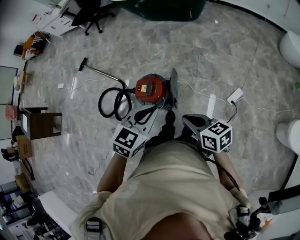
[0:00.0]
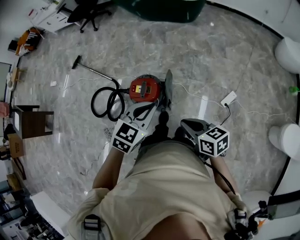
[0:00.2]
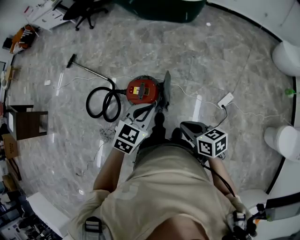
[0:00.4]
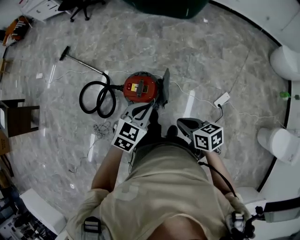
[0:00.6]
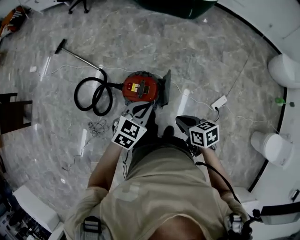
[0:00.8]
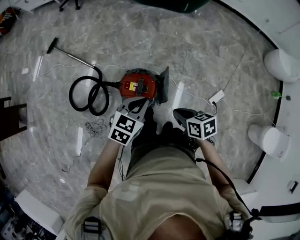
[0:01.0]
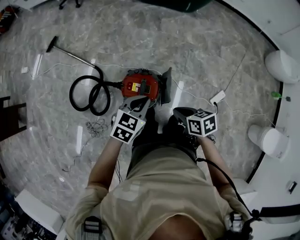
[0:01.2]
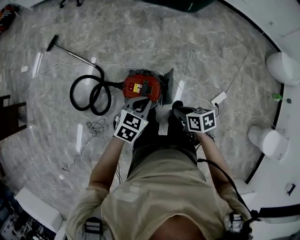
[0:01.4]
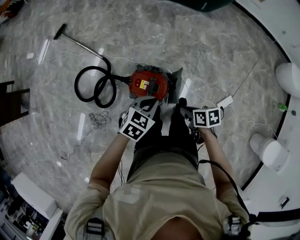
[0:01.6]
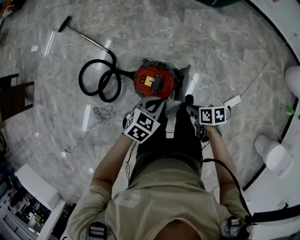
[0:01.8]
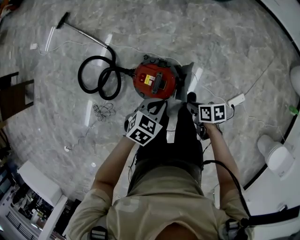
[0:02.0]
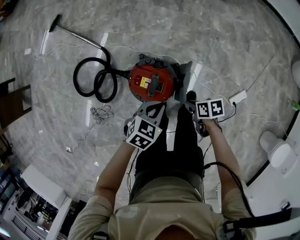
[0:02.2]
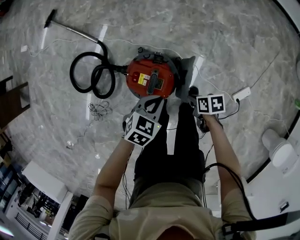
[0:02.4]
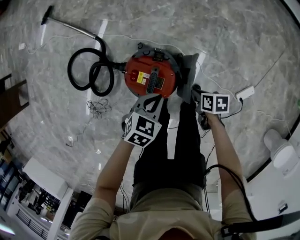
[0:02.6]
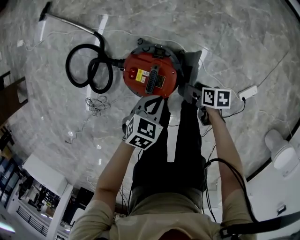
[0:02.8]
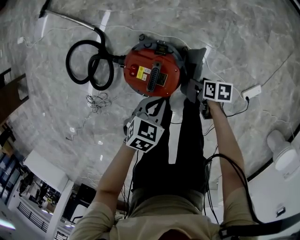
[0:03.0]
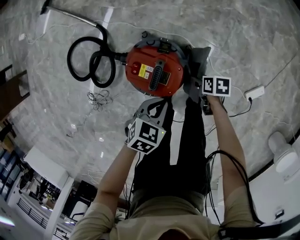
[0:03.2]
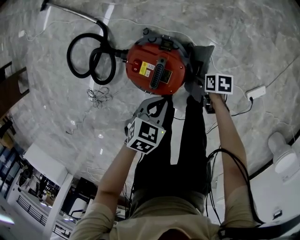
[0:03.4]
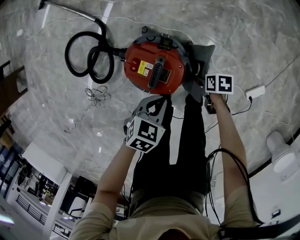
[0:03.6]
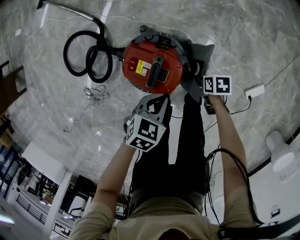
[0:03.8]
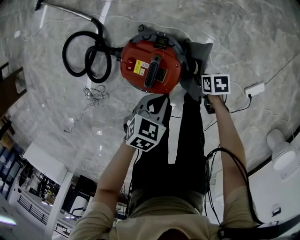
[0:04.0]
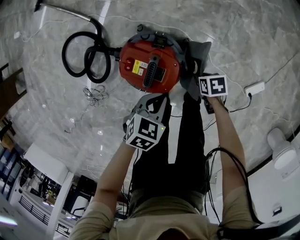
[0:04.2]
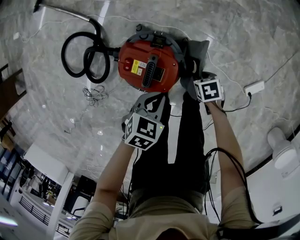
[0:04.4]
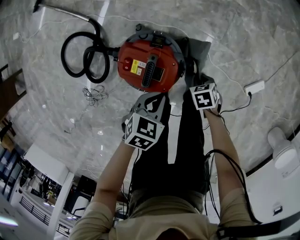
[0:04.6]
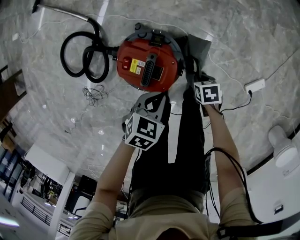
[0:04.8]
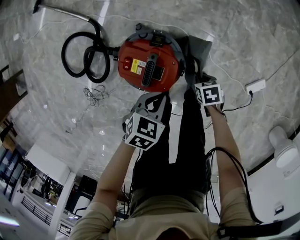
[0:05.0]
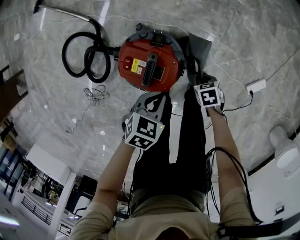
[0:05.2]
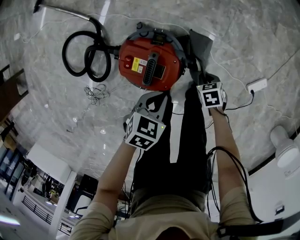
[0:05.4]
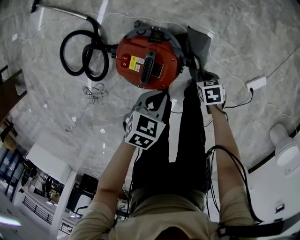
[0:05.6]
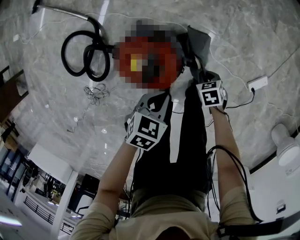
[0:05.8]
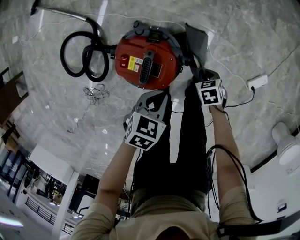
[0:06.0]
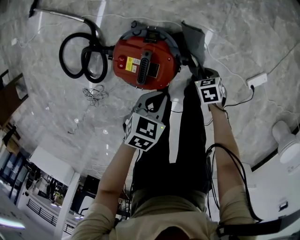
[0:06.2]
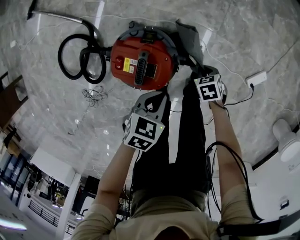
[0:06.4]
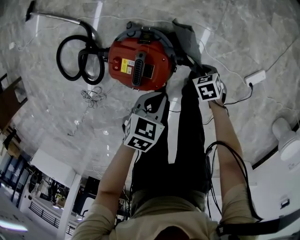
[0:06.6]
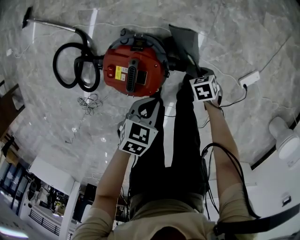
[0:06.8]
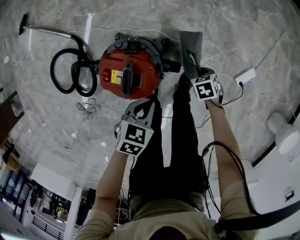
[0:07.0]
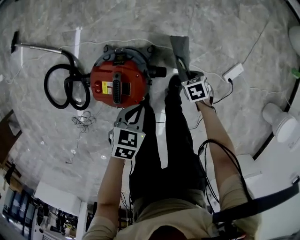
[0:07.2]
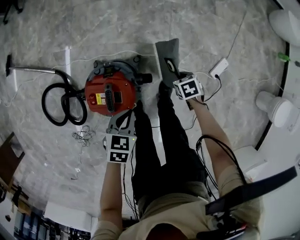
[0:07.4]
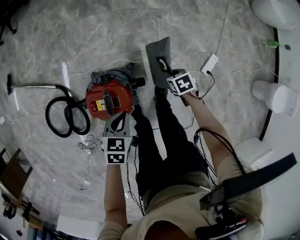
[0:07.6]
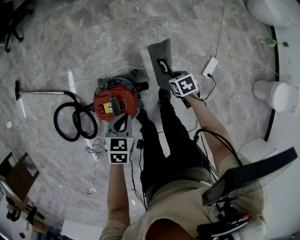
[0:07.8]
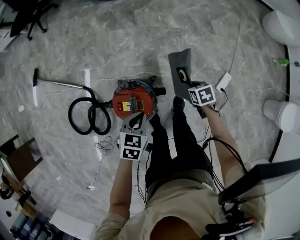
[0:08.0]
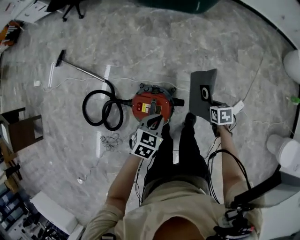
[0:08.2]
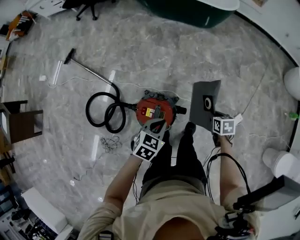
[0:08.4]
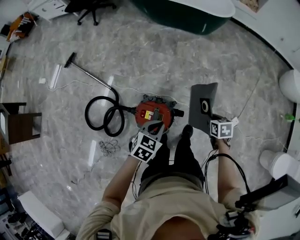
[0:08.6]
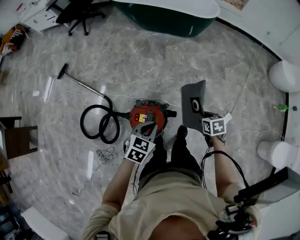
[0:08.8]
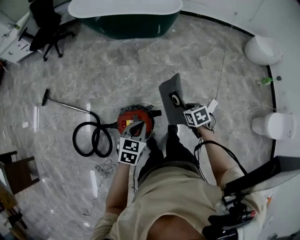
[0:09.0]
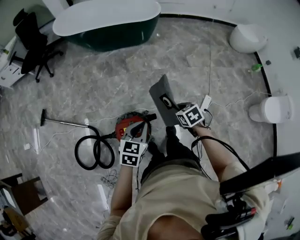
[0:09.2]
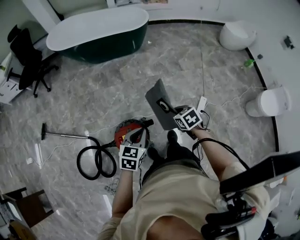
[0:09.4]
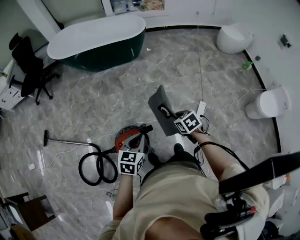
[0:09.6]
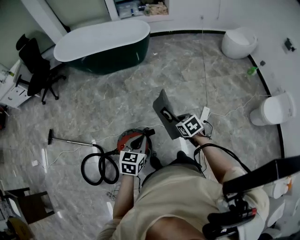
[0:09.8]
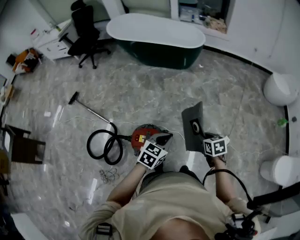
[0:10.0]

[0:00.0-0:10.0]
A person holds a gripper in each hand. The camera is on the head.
0:00.0 to 0:01.4: The two grippers go about 25 cm forward, downward and to the left. The right gripper swivels approximately 30 degrees.
0:01.4 to 0:02.8: Both grippers travel together downward, roughly 30 cm. The right gripper opens up.
0:02.8 to 0:04.2: The right gripper moves downward, approximately 10 cm, turns by approximately 20 degrees, and closes.
0:04.2 to 0:05.8: The right gripper closes its fingers.
0:05.8 to 0:07.2: The right gripper changes place by about 10 cm.
0:07.2 to 0:08.6: The two grippers go approximately 30 cm upward. The right gripper changes its angle by some 20 degrees.
0:08.6 to 0:10.0: The right gripper moves to the right, backward and upward, about 30 cm. Meanwhile the left gripper goes roughly 30 cm to the right, and turns by roughly 20 degrees.

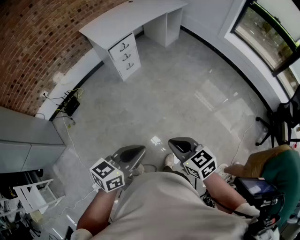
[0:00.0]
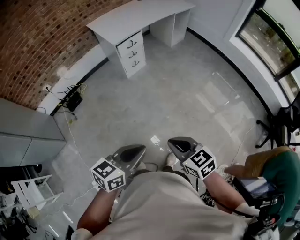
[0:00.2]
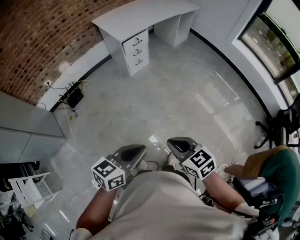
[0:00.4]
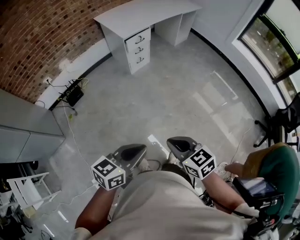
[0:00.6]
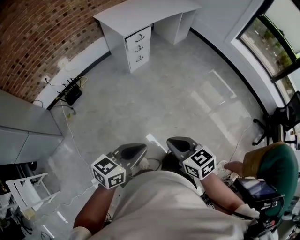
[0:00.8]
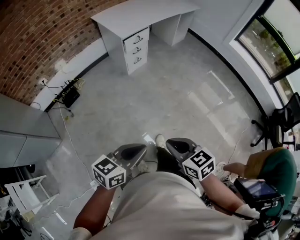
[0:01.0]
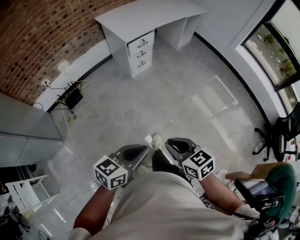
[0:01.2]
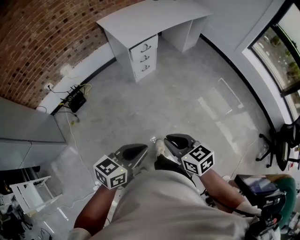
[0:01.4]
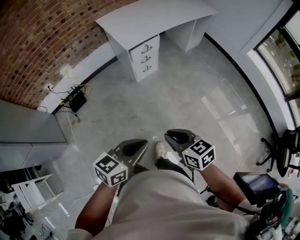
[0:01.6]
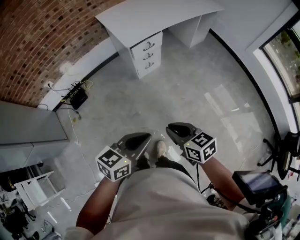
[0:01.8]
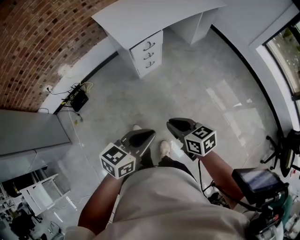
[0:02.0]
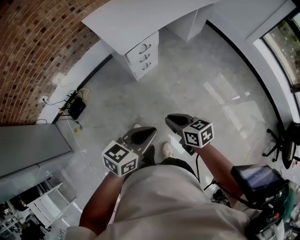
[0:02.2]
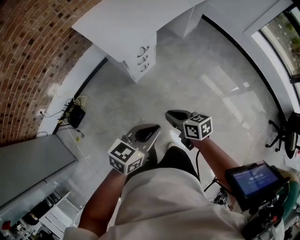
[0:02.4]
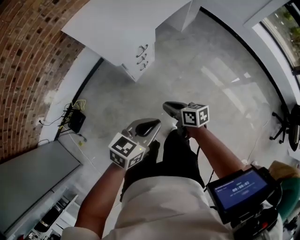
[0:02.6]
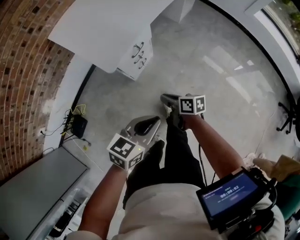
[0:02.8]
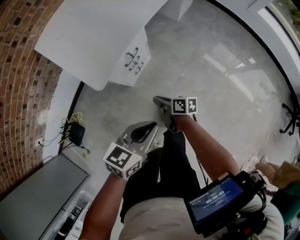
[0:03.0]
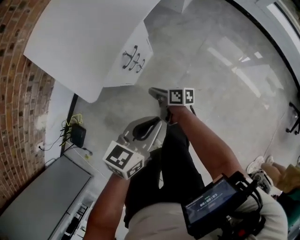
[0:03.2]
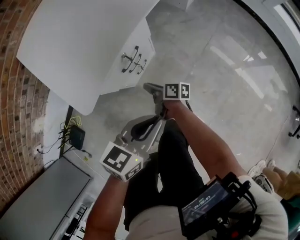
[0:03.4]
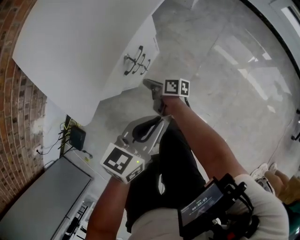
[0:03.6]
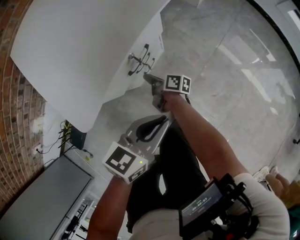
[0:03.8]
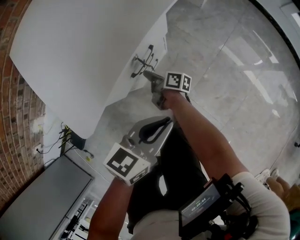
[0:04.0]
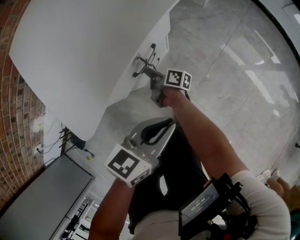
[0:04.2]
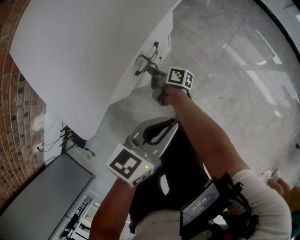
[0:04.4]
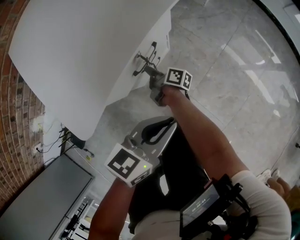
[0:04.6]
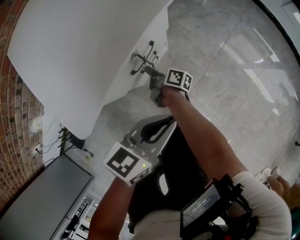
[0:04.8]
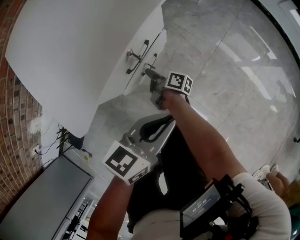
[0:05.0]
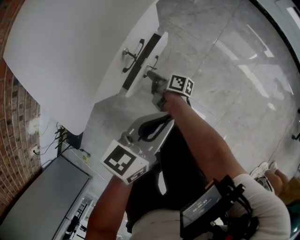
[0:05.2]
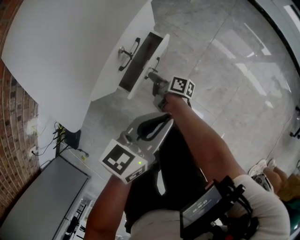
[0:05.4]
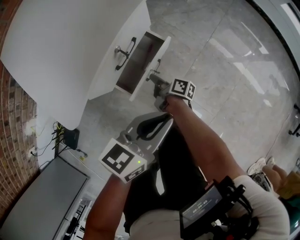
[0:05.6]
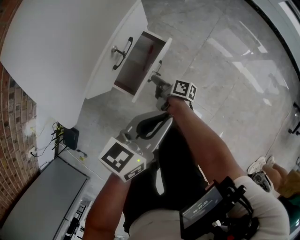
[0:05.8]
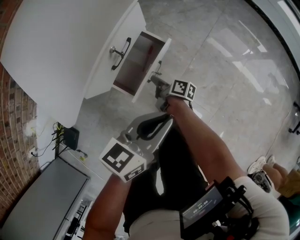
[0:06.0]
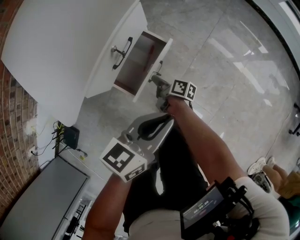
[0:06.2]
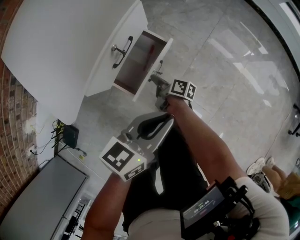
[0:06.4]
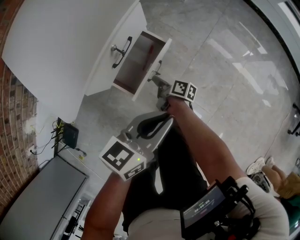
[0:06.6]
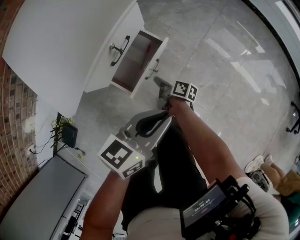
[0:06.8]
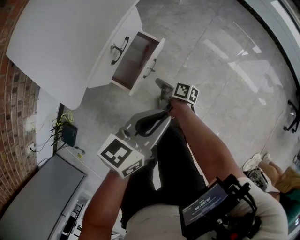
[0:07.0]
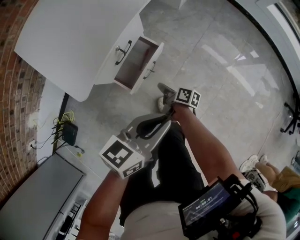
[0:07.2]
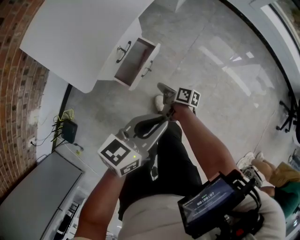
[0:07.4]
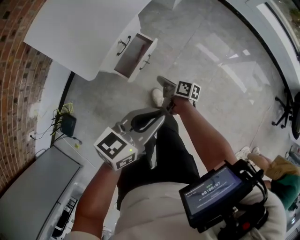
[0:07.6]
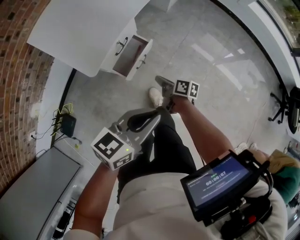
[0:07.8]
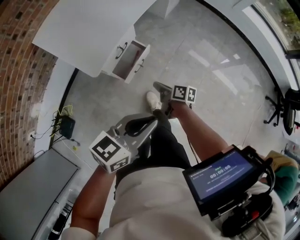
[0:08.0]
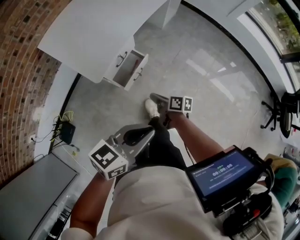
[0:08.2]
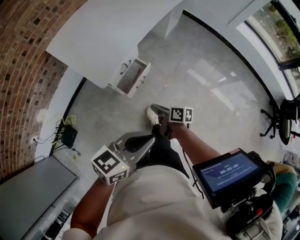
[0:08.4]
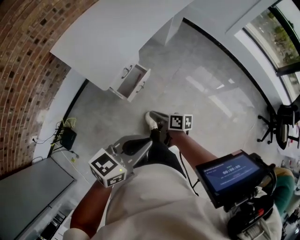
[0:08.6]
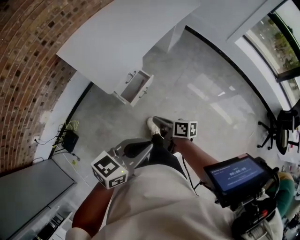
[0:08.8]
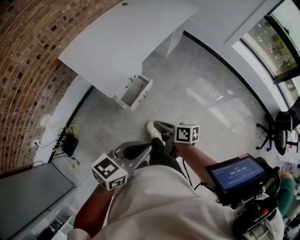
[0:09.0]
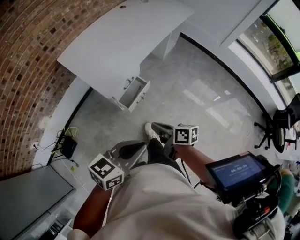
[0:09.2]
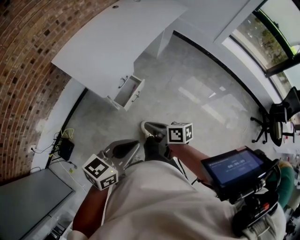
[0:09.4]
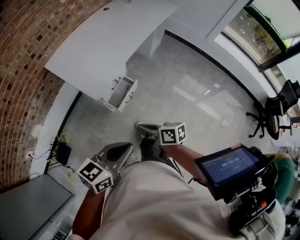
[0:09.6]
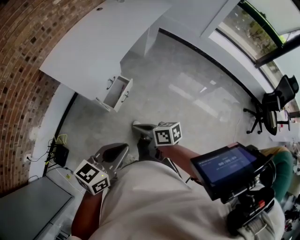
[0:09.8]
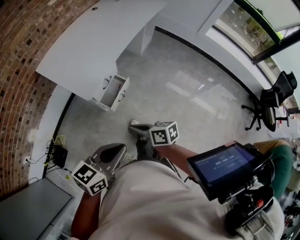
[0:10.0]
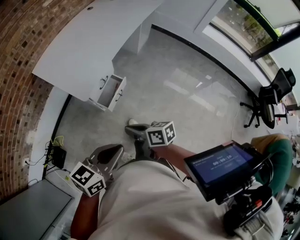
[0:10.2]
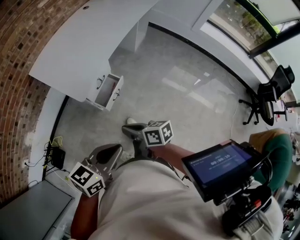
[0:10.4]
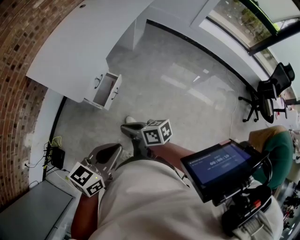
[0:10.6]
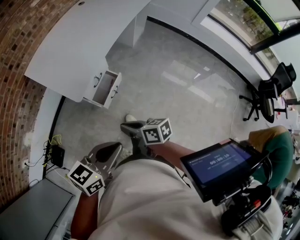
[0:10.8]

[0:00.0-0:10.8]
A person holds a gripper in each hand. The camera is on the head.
0:00.0 to 0:01.6: The two grippers go approximately 25 cm forward and to the left.
0:01.6 to 0:03.0: The two grippers travel together, forward, some 50 cm. The right gripper moves downward, about 40 cm, and twists approximately 50 degrees clockwise, seen from behind, while the left gripper is displaced downward by approximately 25 cm.
0:03.0 to 0:04.6: The left gripper goes roughly 25 cm downward and forward, while the right gripper heads downward, forward and to the left, covering approximately 35 cm, and swivels approximately 20 degrees.
0:04.6 to 0:06.2: The right gripper shifts approximately 15 cm to the right and backward, while the left gripper travels to the right by some 5 cm.
0:06.2 to 0:07.8: The left gripper shifts some 25 cm upward and backward; the right gripper is displaced upward by roughly 25 cm.
0:07.8 to 0:09.2: The right gripper goes roughly 30 cm upward and backward, and turns by some 20 degrees. Meanwhile the left gripper shifts about 20 cm upward and backward.
0:09.2 to 0:10.8: The grippers move only a little.

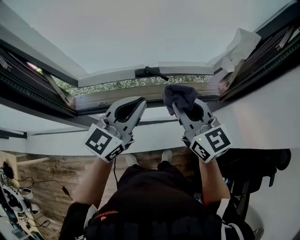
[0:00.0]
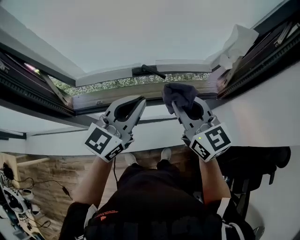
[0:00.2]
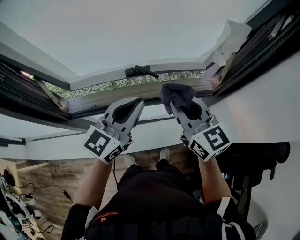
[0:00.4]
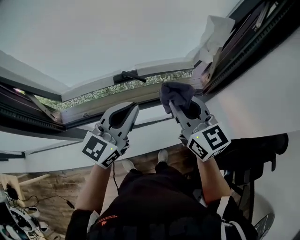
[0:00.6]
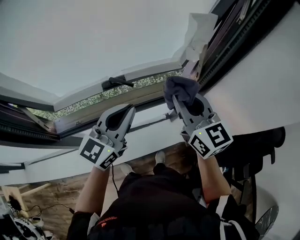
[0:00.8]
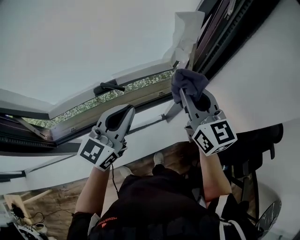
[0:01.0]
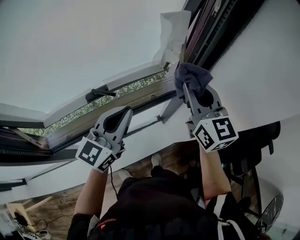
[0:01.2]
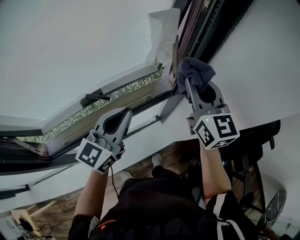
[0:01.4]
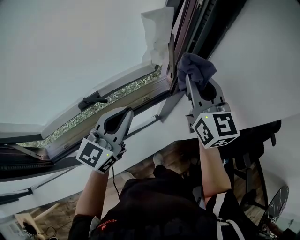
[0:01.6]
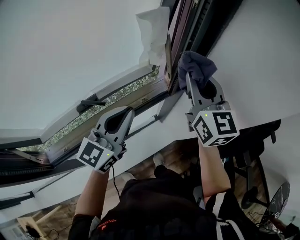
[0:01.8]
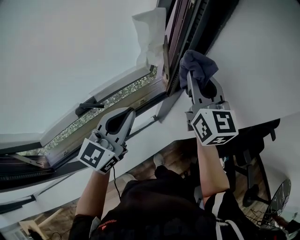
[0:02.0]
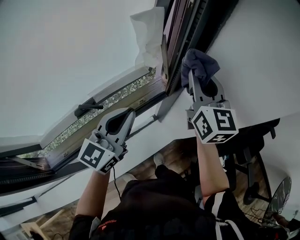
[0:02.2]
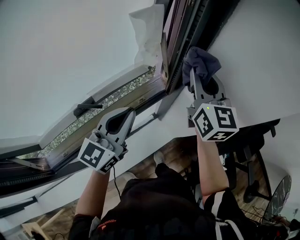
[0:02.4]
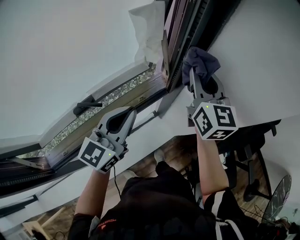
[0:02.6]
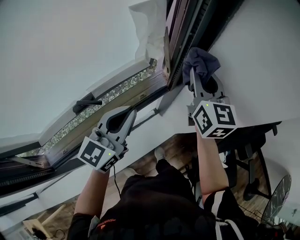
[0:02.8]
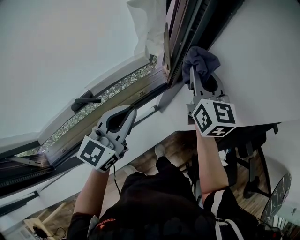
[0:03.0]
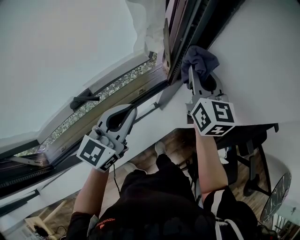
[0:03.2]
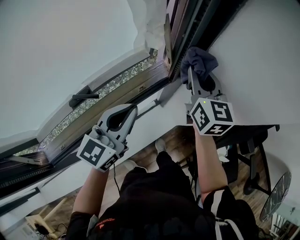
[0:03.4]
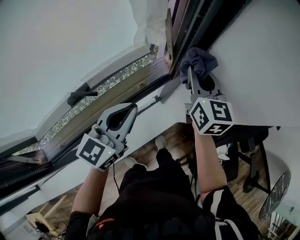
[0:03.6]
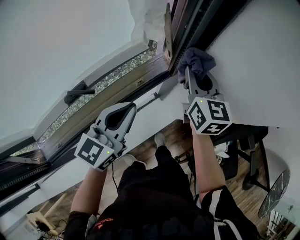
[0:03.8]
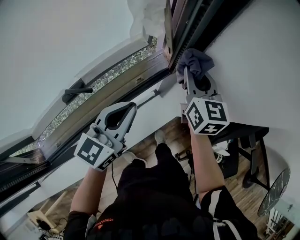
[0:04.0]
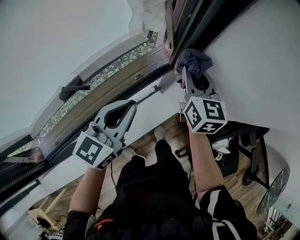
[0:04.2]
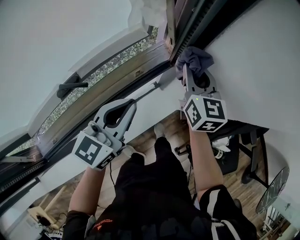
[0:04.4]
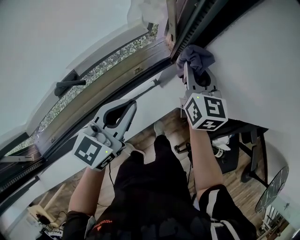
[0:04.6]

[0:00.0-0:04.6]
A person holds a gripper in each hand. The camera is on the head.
0:00.0 to 0:01.6: The left gripper changes place by about 20 cm. The right gripper changes place by roughly 30 cm, and changes its angle by roughly 40 degrees.
0:01.6 to 0:03.0: The right gripper moves downward, about 5 cm.
0:03.0 to 0:04.6: The left gripper heads downward, covering about 10 cm. Meanwhile the right gripper heads downward, covering about 15 cm.
